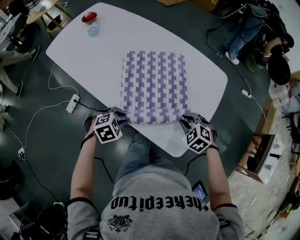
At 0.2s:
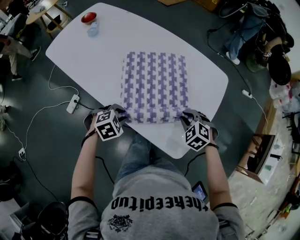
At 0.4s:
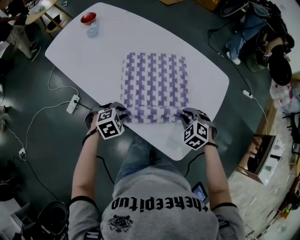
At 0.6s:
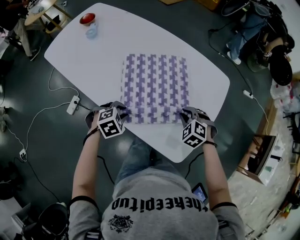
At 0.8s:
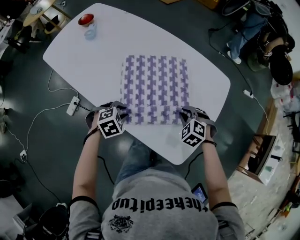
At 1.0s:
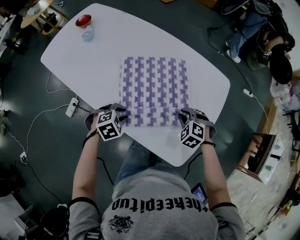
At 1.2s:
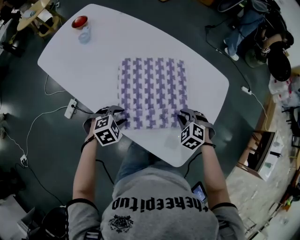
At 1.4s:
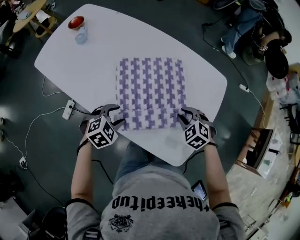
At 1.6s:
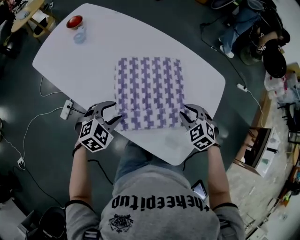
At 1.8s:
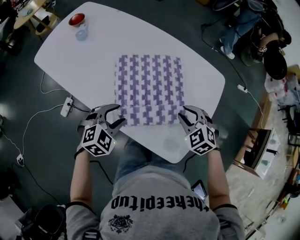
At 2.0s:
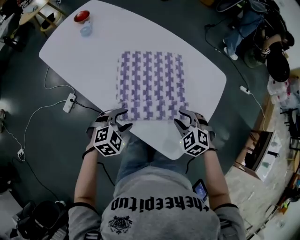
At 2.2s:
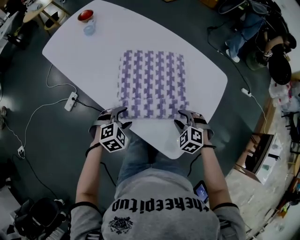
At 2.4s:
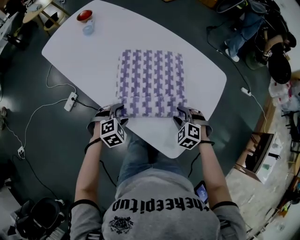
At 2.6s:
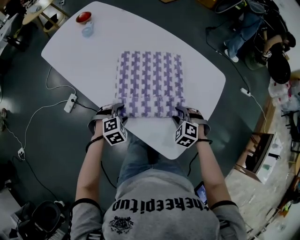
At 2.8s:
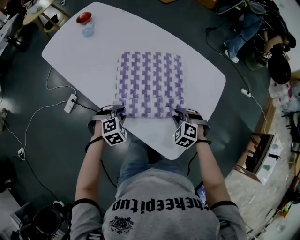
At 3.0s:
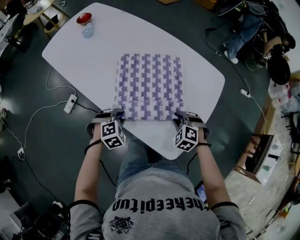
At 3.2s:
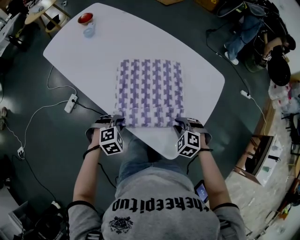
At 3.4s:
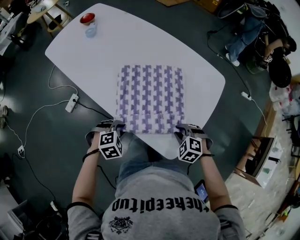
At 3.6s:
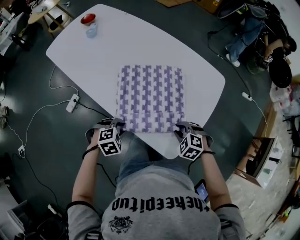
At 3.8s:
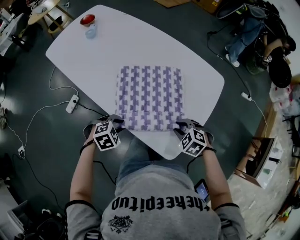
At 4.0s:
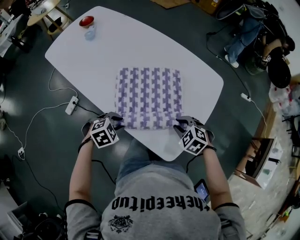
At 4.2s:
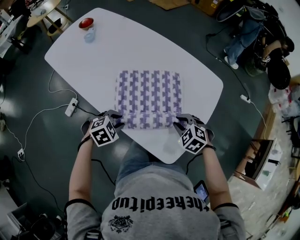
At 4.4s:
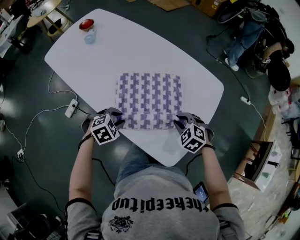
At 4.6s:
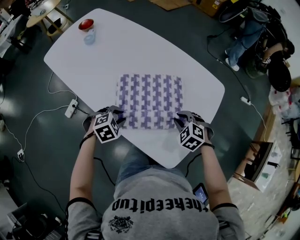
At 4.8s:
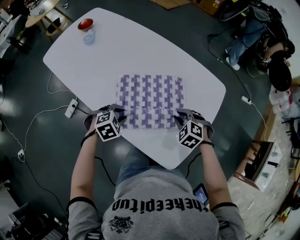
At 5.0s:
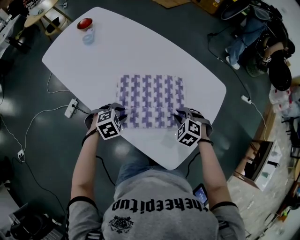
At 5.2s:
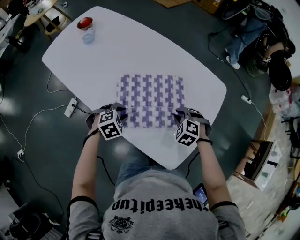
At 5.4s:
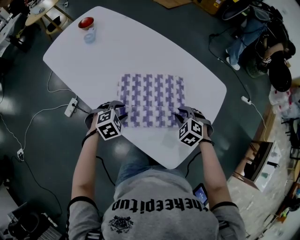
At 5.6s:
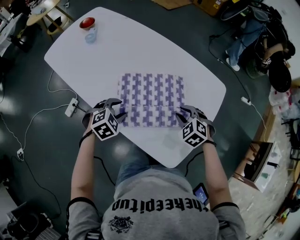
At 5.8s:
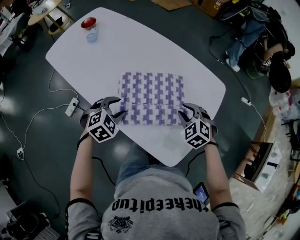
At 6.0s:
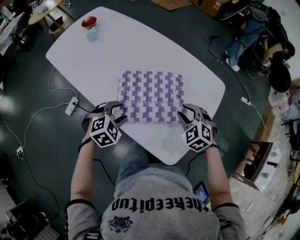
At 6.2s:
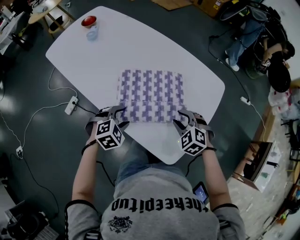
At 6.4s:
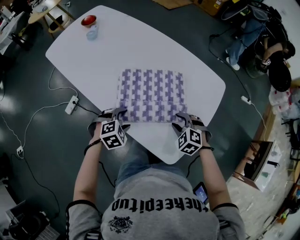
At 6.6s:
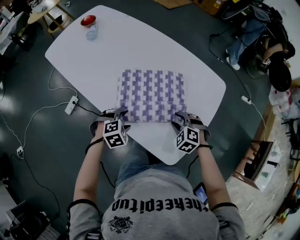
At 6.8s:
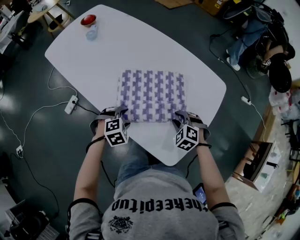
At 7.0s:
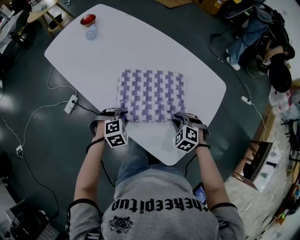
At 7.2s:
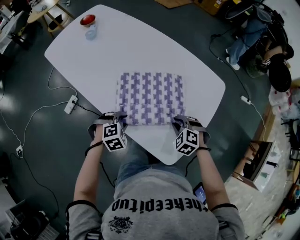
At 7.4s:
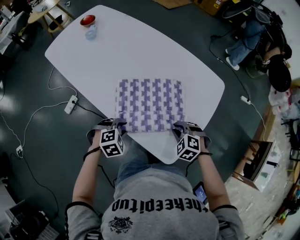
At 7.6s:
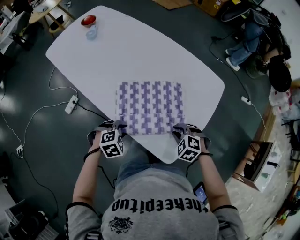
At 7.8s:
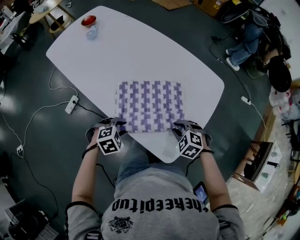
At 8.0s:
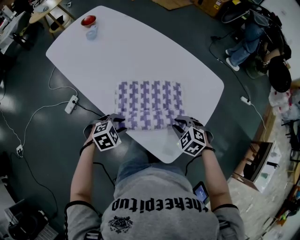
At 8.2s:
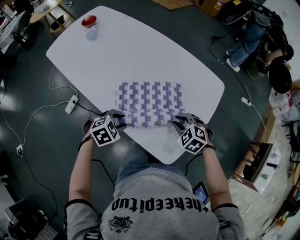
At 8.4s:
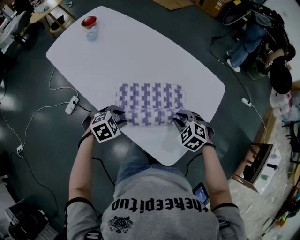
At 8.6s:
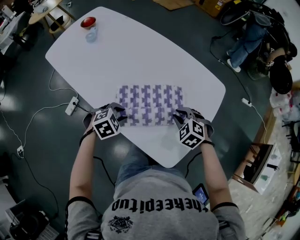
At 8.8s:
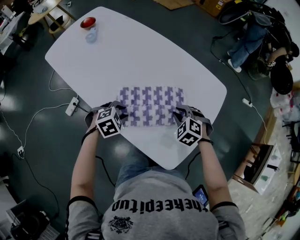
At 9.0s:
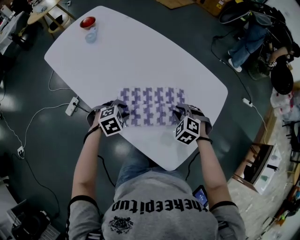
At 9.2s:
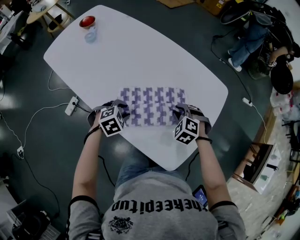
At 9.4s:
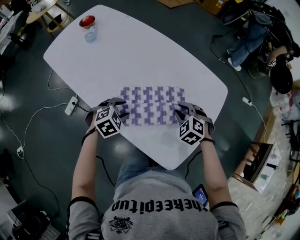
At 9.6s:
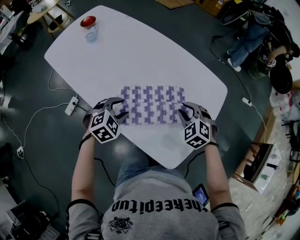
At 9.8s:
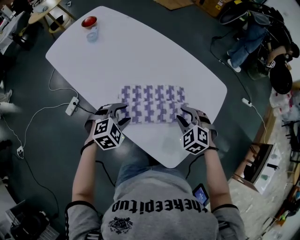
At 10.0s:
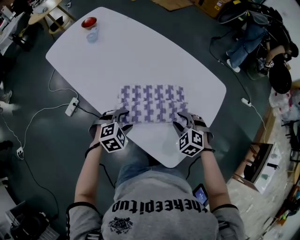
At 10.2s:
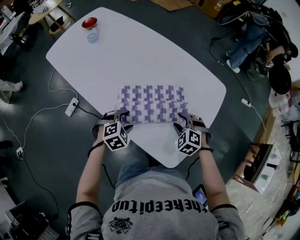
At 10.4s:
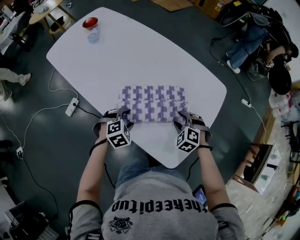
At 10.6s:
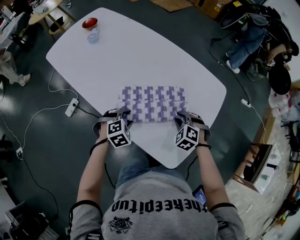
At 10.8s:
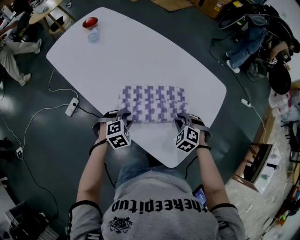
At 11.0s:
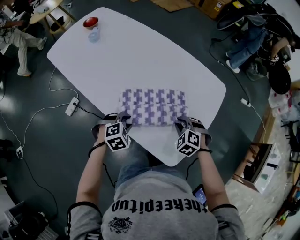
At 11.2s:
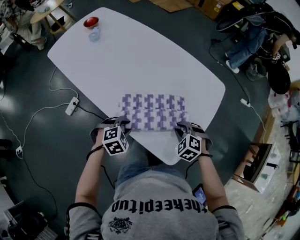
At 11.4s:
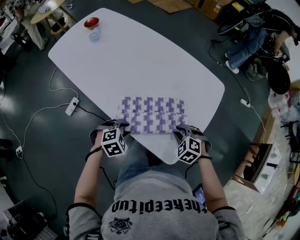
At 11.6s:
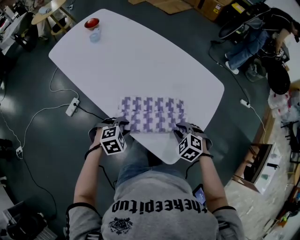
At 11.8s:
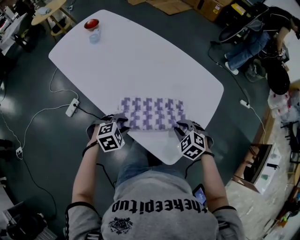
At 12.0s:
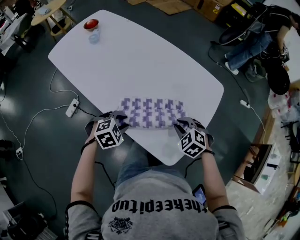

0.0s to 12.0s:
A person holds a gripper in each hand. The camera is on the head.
0.0s to 1.6s: The right gripper travels forward by approximately 10 cm; the left gripper shifts roughly 10 cm forward and upward, changes its angle by roughly 20 degrees, and opens its fingers.
1.6s to 3.0s: Both grippers move downward, roughly 10 cm. The left gripper changes its angle by about 20 degrees, and closes; the right gripper changes its angle by some 20 degrees.
3.0s to 4.4s: The two grippers go roughly 10 cm forward.
4.4s to 6.0s: The right gripper is displaced upward by some 5 cm. The left gripper shifts by about 5 cm.
6.0s to 7.6s: The two grippers go about 5 cm downward.
7.6s to 9.0s: The grippers both shift forward by approximately 10 cm.
9.0s to 10.4s: The left gripper opens up. The right gripper moves about 5 cm, and opens up.
10.4s to 12.0s: Both grippers move upward, some 10 cm. The right gripper goes backward and returns, some 10 cm each way, and closes its fingers; the left gripper travels backward and back again, roughly 10 cm each way, and closes its fingers.

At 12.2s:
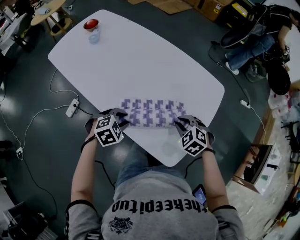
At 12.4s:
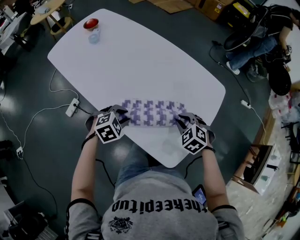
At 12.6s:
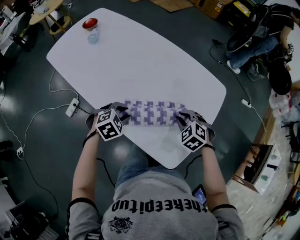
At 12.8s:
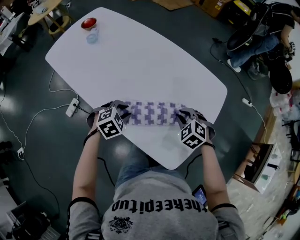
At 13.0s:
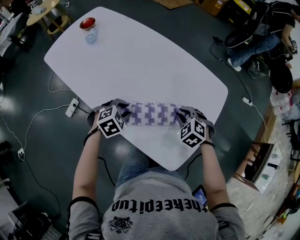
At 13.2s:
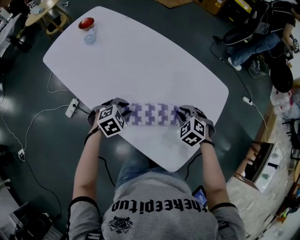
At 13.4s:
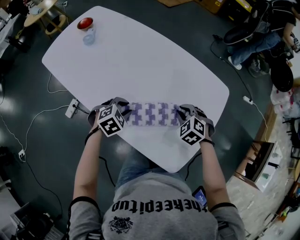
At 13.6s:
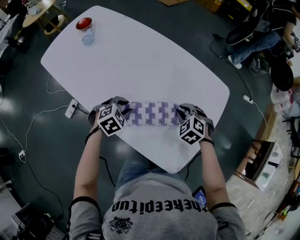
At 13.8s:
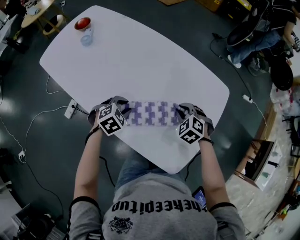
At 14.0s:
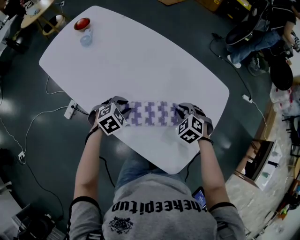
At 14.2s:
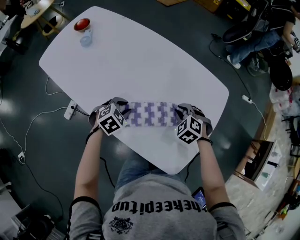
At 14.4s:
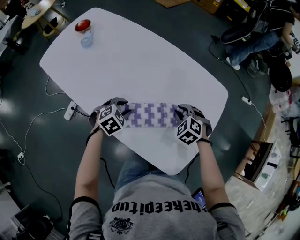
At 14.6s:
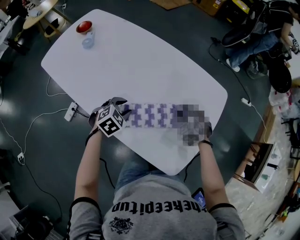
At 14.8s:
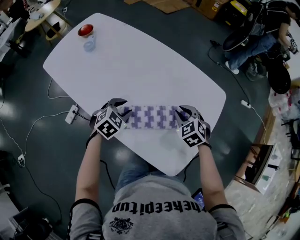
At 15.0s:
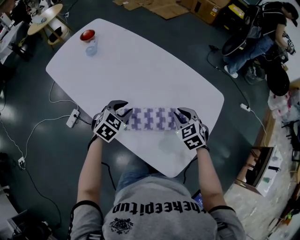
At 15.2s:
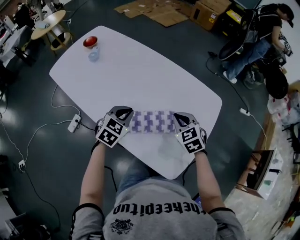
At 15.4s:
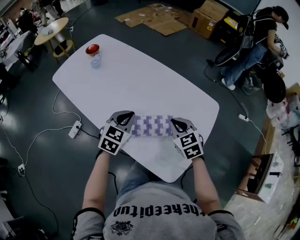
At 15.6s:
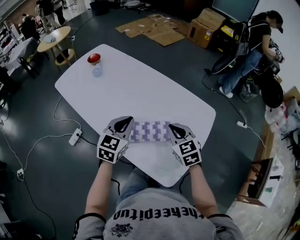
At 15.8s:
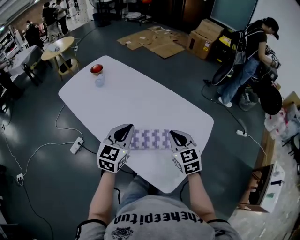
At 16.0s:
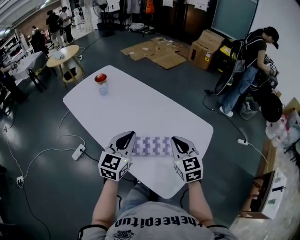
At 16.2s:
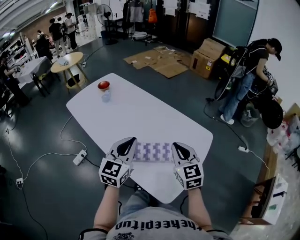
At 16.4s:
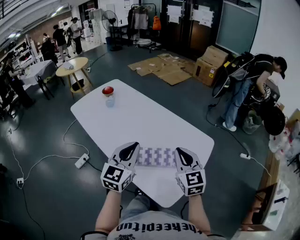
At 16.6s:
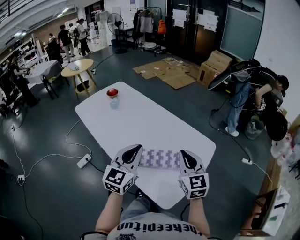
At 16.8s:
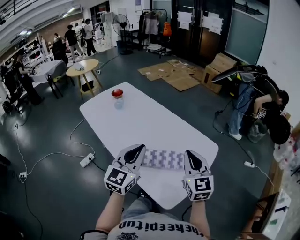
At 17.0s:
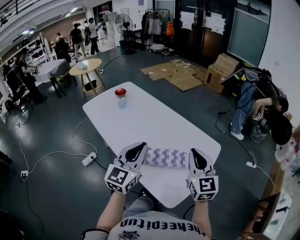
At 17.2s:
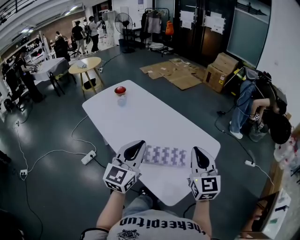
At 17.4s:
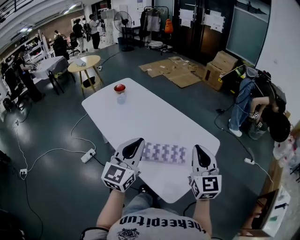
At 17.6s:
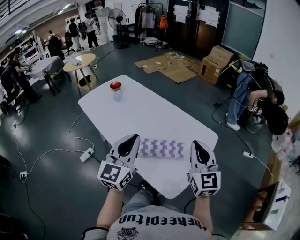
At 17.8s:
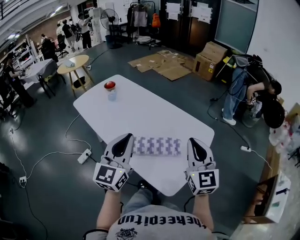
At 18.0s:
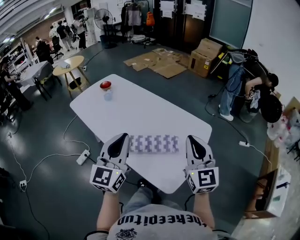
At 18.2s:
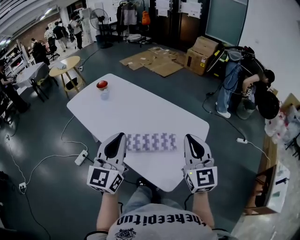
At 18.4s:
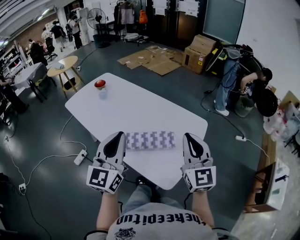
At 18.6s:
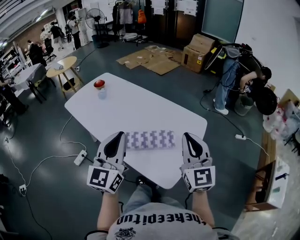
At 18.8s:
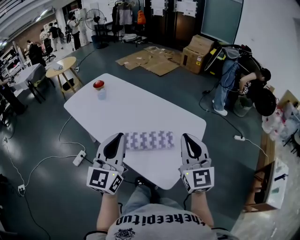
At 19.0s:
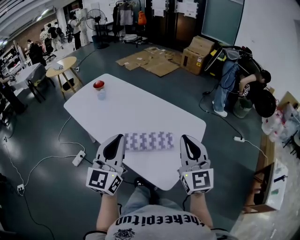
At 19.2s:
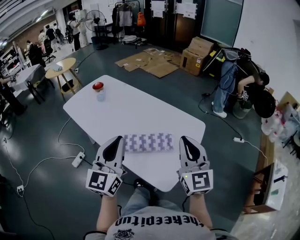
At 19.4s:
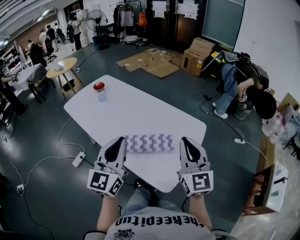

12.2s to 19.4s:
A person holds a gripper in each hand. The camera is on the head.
12.2s to 13.6s: The grippers both shift forward by about 5 cm.
13.6s to 15.0s: The grippers both shift upward by some 5 cm. The right gripper turns by roughly 20 degrees. Meanwhile the left gripper rotates about 20 degrees.
15.0s to 16.6s: The two grippers go approximately 50 cm upward. The right gripper tips its fingers upward by about 30 degrees; the left gripper tilts its fingers about 40 degrees upward, and closes up.
16.6s to 18.0s: Both grippers travel together upward and backward, some 10 cm.
18.0s to 19.4s: There are only small adjustments of the grippers.

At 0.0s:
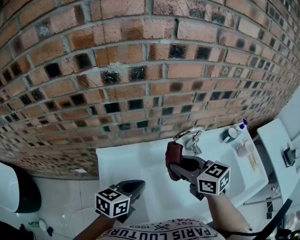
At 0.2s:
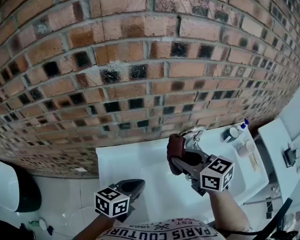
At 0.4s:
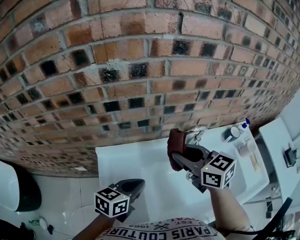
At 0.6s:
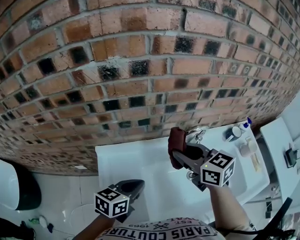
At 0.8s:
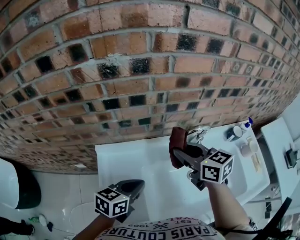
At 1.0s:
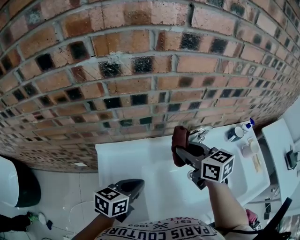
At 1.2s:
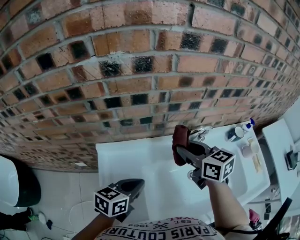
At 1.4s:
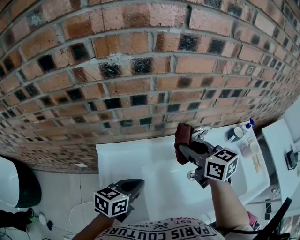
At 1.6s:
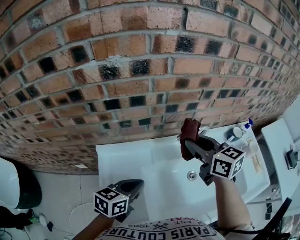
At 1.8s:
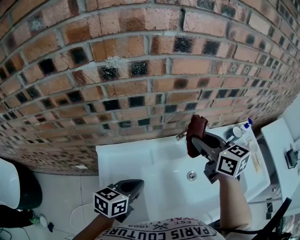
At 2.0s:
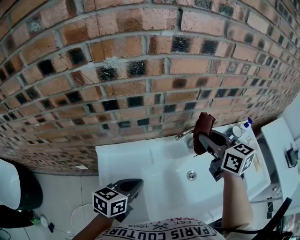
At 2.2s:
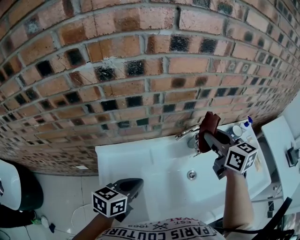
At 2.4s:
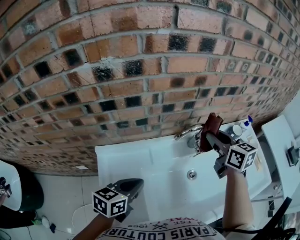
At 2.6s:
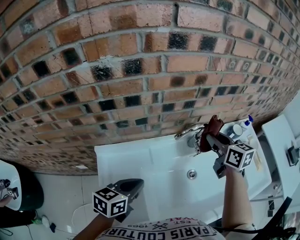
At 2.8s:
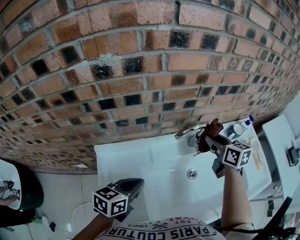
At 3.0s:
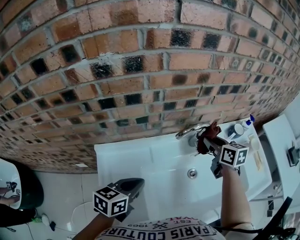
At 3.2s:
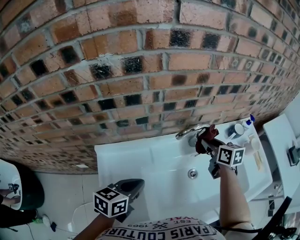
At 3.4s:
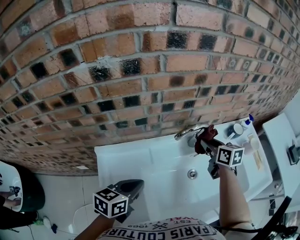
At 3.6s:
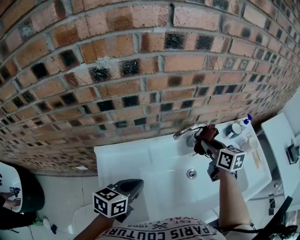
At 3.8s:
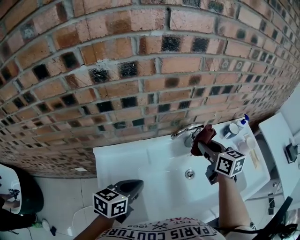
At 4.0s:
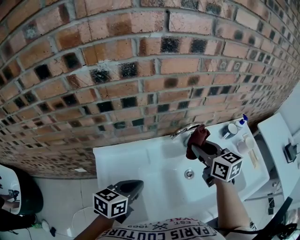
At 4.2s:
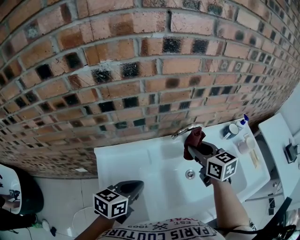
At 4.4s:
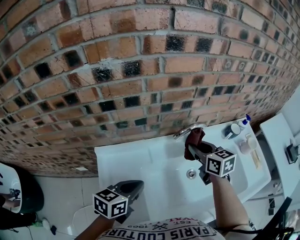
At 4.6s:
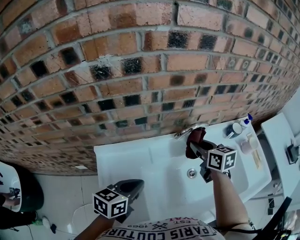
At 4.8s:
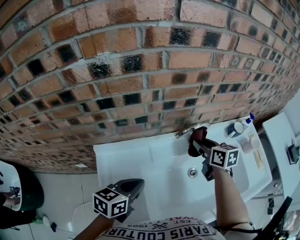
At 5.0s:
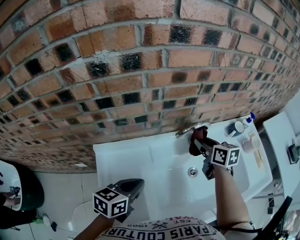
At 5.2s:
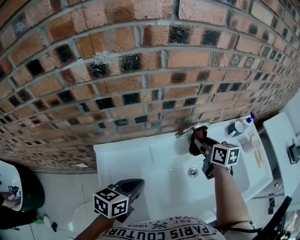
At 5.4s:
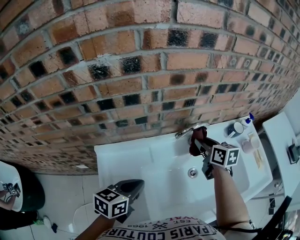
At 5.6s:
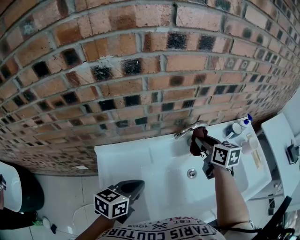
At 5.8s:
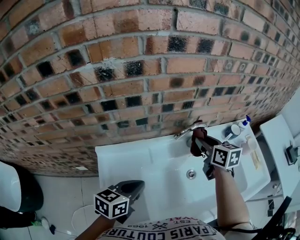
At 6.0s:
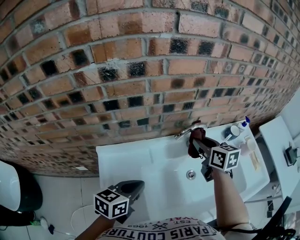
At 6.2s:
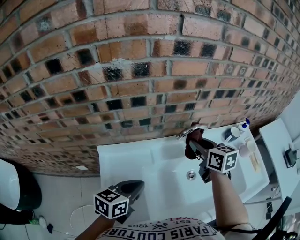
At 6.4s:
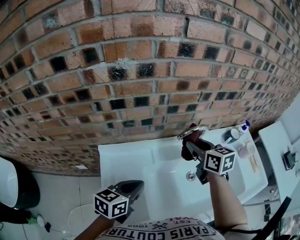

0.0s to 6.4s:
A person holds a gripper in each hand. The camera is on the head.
0.0s to 1.6s: The right gripper moves forward, roughly 10 cm.
1.6s to 3.2s: The right gripper heads downward, to the right and forward, covering about 20 cm, and swivels some 20 degrees.
3.2s to 4.8s: The right gripper goes upward and returns, roughly 10 cm each way.
4.8s to 6.4s: The right gripper travels upward and to the left by roughly 10 cm.
